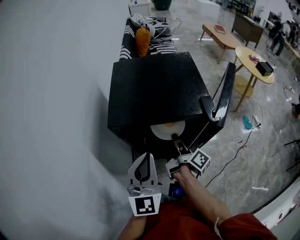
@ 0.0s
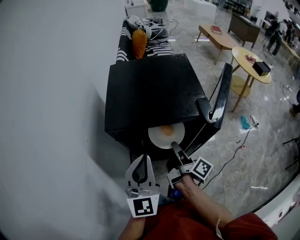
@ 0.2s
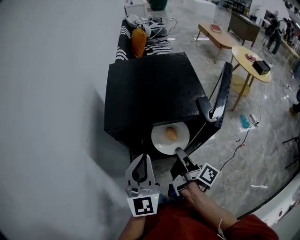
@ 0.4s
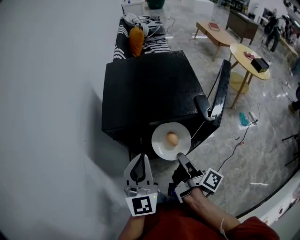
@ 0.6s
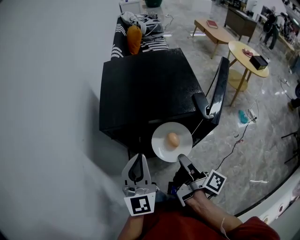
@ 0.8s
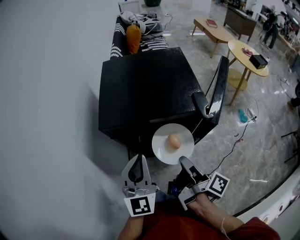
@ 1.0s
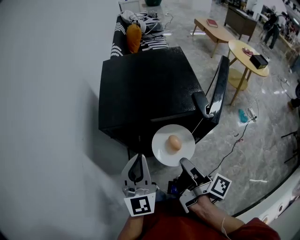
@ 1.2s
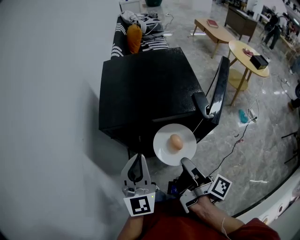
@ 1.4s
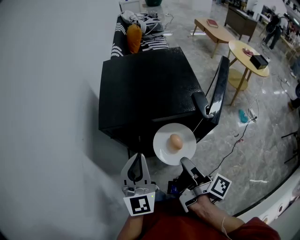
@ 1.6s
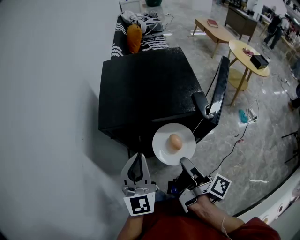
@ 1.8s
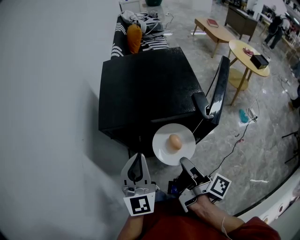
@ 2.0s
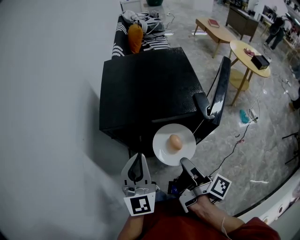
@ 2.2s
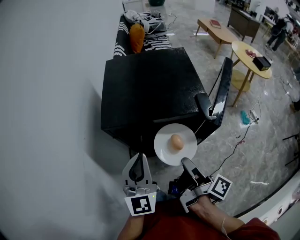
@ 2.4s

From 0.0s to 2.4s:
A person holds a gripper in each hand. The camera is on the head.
From 0.0s to 1.2s: The right gripper travels backward and upward by some 15 cm.
From 1.2s to 2.4s: Both grippers stay about where they are.

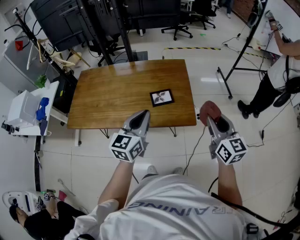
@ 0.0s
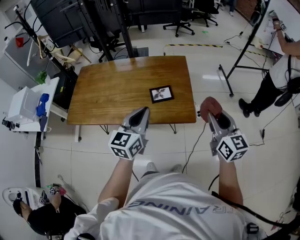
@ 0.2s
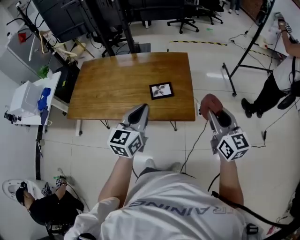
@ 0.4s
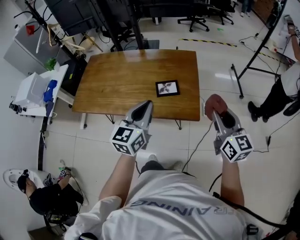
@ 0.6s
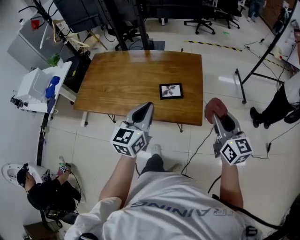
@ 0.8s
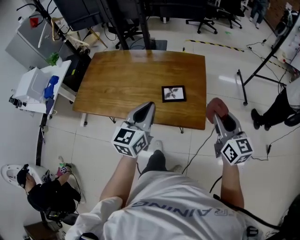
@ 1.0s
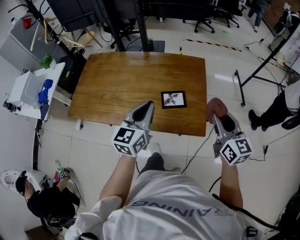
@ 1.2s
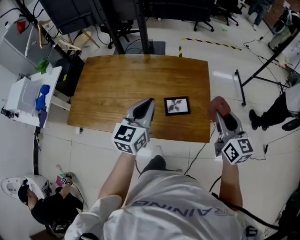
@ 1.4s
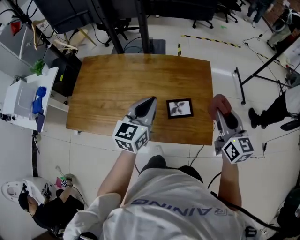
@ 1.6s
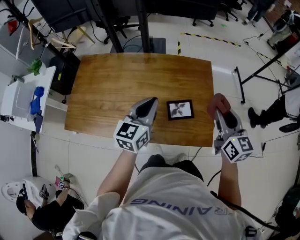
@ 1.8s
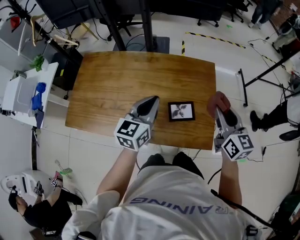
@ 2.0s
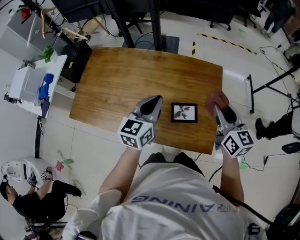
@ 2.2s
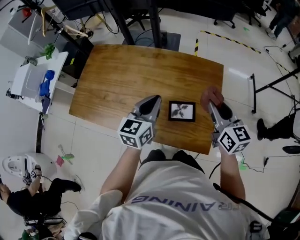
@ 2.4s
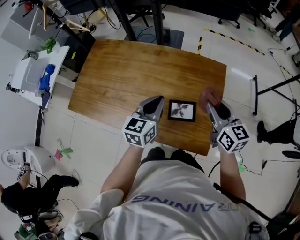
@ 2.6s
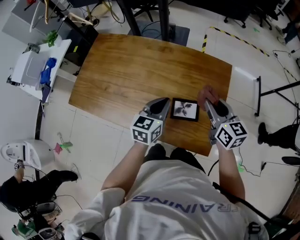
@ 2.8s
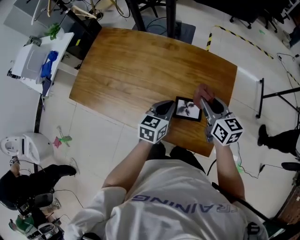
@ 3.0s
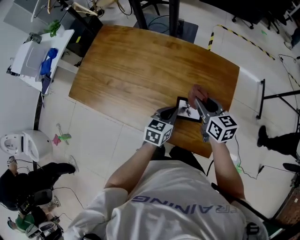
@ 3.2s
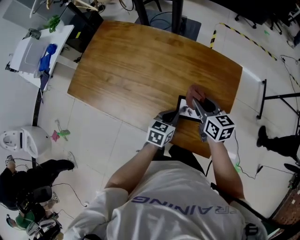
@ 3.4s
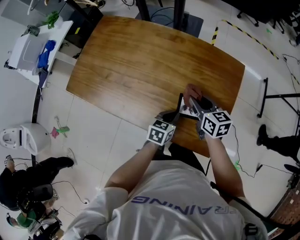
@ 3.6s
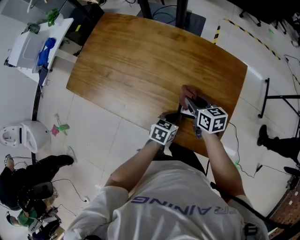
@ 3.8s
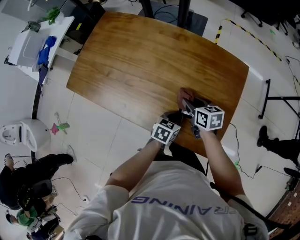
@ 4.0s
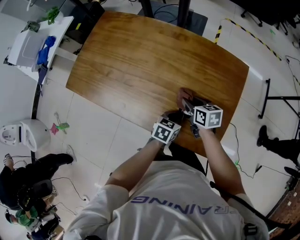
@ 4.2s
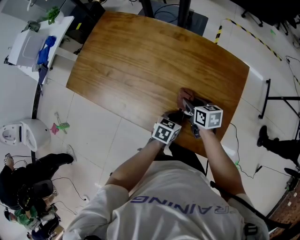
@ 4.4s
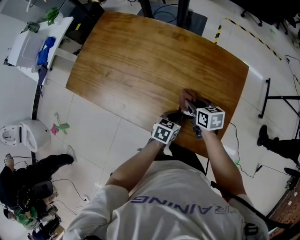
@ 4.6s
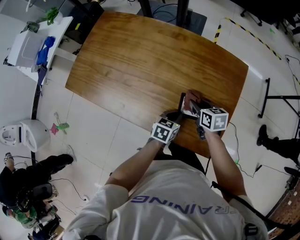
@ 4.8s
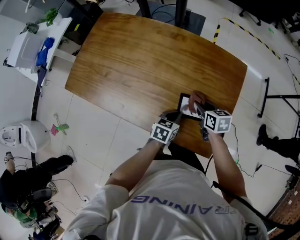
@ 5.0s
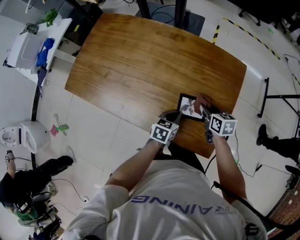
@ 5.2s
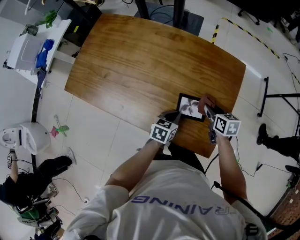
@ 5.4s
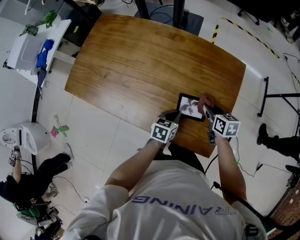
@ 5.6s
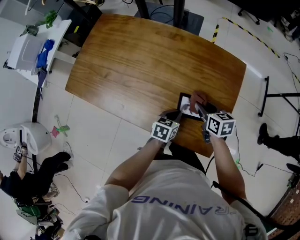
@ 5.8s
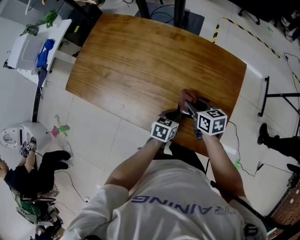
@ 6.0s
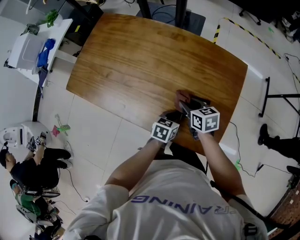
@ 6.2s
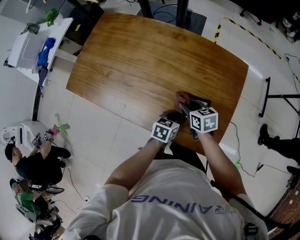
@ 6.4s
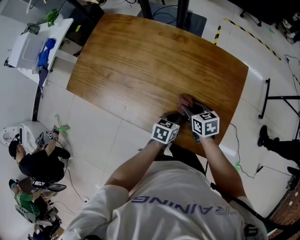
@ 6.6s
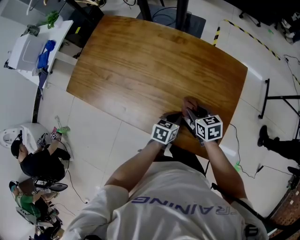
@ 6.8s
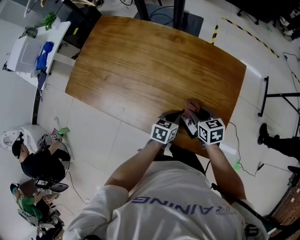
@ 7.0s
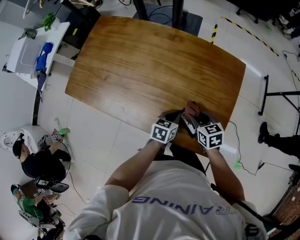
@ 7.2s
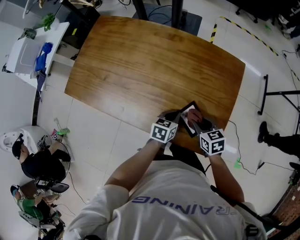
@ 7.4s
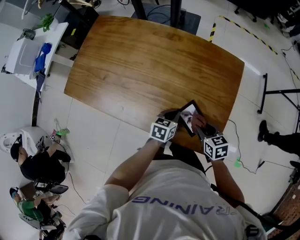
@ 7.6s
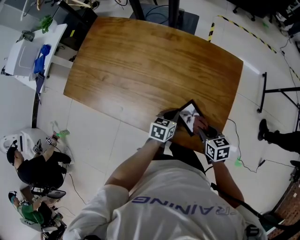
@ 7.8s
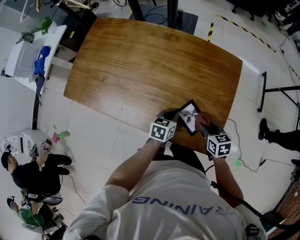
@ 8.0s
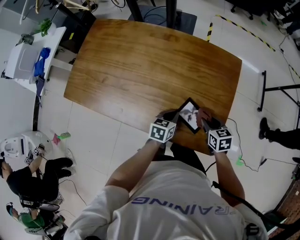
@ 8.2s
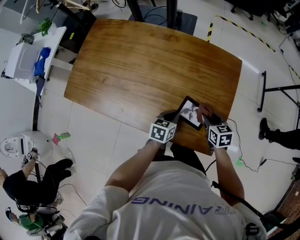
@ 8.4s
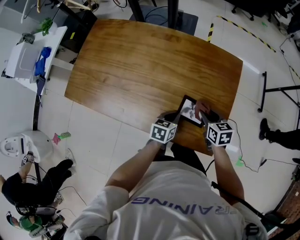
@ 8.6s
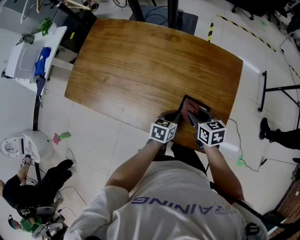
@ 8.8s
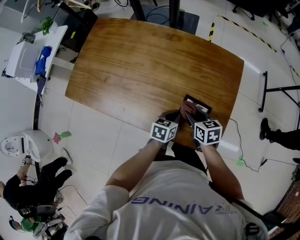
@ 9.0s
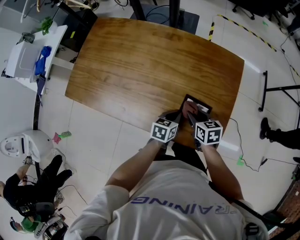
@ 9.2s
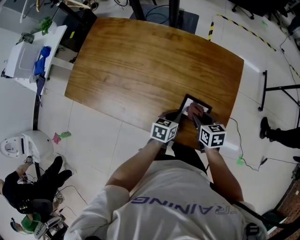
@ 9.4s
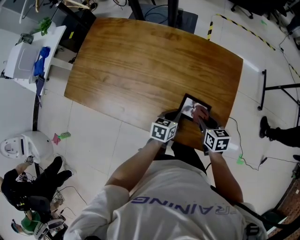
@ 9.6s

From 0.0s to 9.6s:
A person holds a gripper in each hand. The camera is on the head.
From 0.0s to 1.6s: The grippers both shift forward by roughly 20 cm.
From 1.6s to 3.2s: The right gripper is displaced downward, forward and to the left by some 20 cm, and swivels about 30 degrees, while the left gripper shifts roughly 20 cm downward, and changes its angle by approximately 30 degrees.
From 3.2s to 4.8s: The right gripper shifts some 15 cm downward, and rotates some 20 degrees; the left gripper shifts roughly 10 cm downward.
From 4.8s to 6.4s: The right gripper moves to the left, roughly 5 cm.
From 6.4s to 8.0s: The right gripper travels to the right and backward by roughly 15 cm.
From 8.0s to 9.6s: The right gripper reaches some 10 cm to the left, then returns.

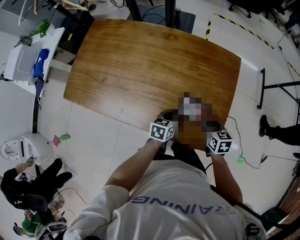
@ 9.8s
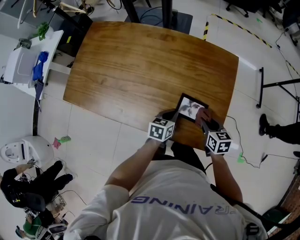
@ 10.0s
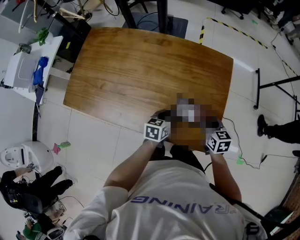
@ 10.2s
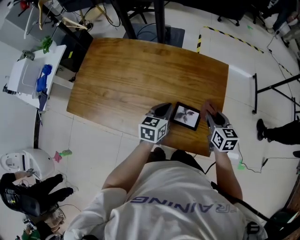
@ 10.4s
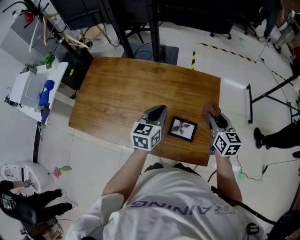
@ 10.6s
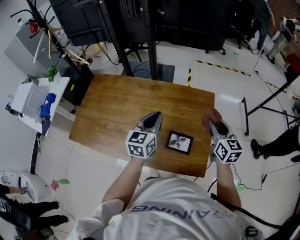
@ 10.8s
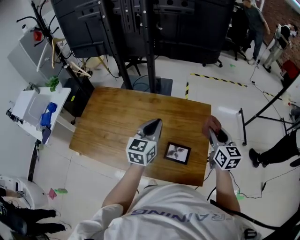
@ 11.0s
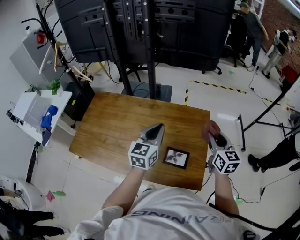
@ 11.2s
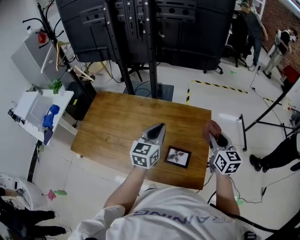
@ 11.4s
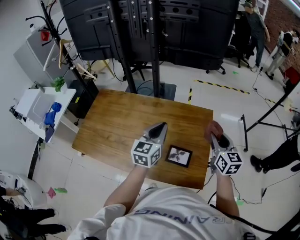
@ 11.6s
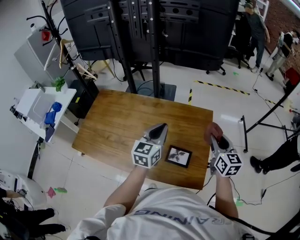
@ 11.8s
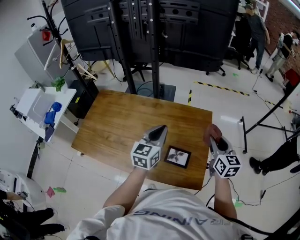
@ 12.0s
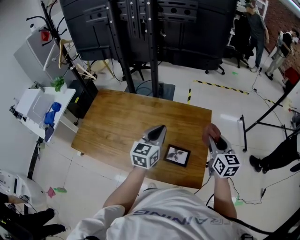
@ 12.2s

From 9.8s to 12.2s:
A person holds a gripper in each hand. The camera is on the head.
From 9.8s to 11.0s: The two grippers go some 25 cm upward. The right gripper tilts its fingers approximately 30 degrees upward; the left gripper angles its fingers upward, by roughly 30 degrees.
From 11.0s to 12.2s: There are only small adjustments of the grippers.

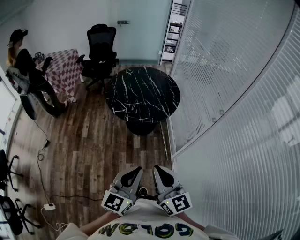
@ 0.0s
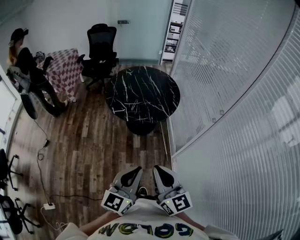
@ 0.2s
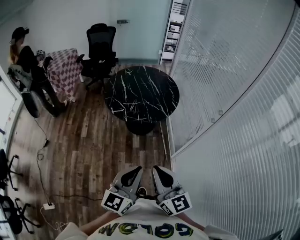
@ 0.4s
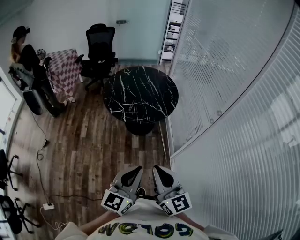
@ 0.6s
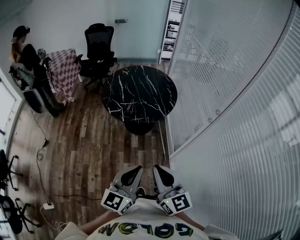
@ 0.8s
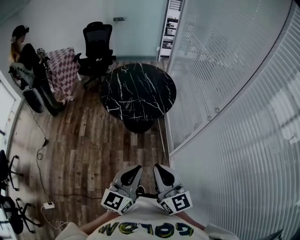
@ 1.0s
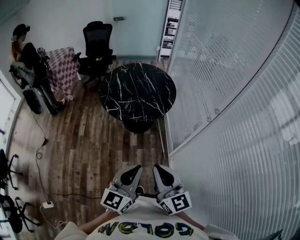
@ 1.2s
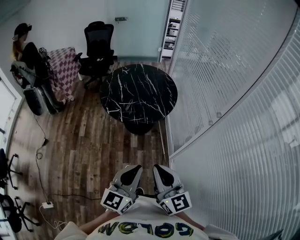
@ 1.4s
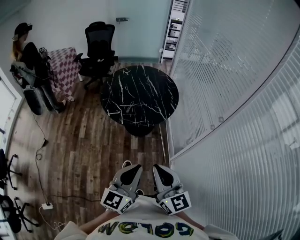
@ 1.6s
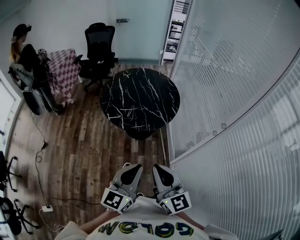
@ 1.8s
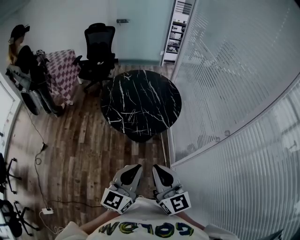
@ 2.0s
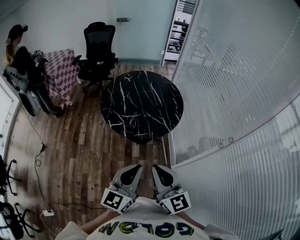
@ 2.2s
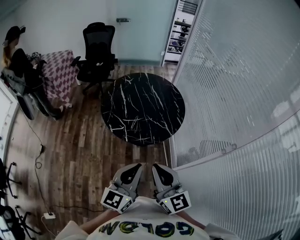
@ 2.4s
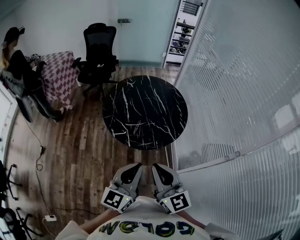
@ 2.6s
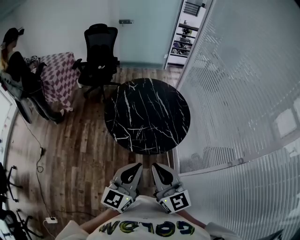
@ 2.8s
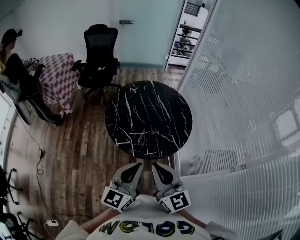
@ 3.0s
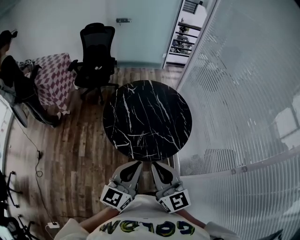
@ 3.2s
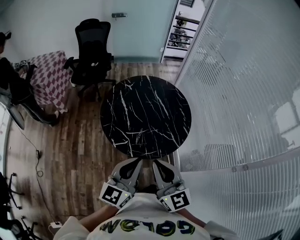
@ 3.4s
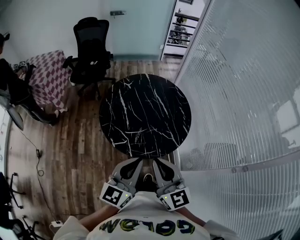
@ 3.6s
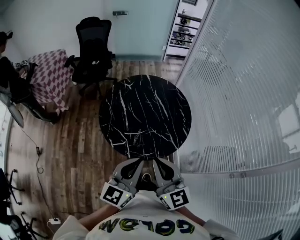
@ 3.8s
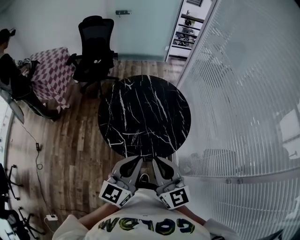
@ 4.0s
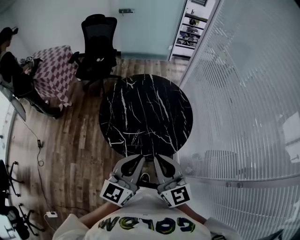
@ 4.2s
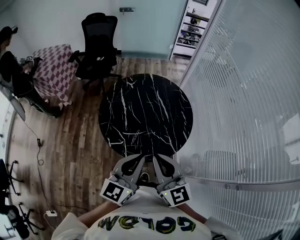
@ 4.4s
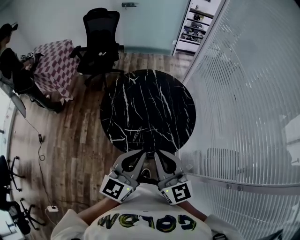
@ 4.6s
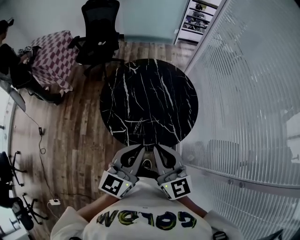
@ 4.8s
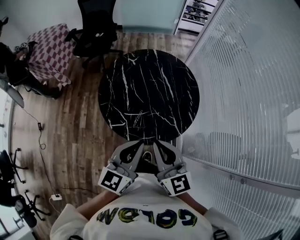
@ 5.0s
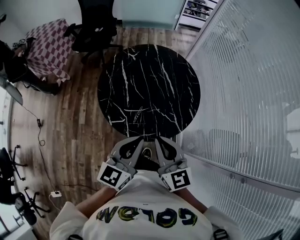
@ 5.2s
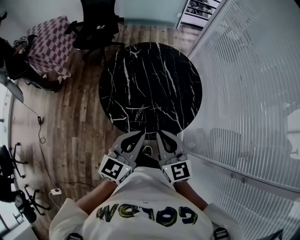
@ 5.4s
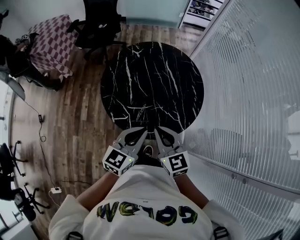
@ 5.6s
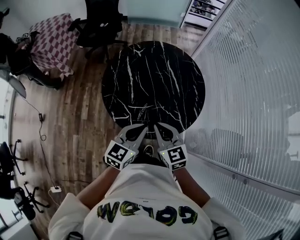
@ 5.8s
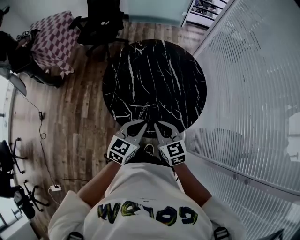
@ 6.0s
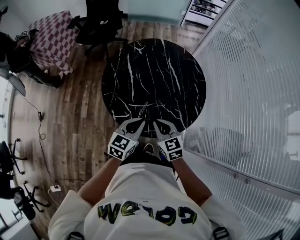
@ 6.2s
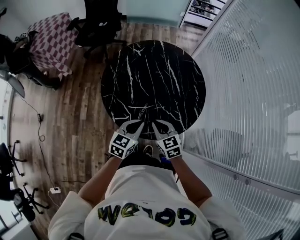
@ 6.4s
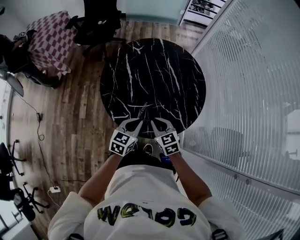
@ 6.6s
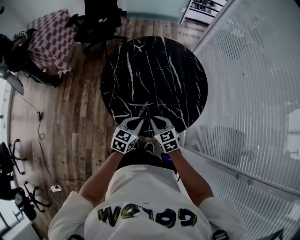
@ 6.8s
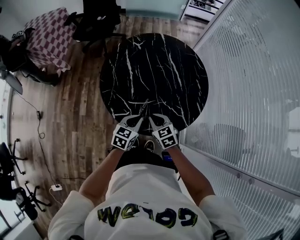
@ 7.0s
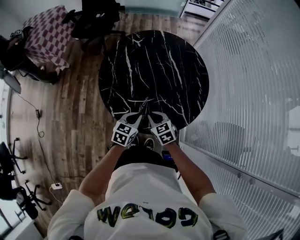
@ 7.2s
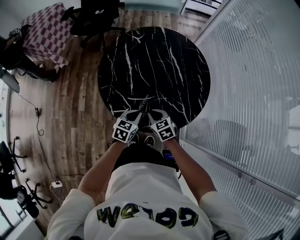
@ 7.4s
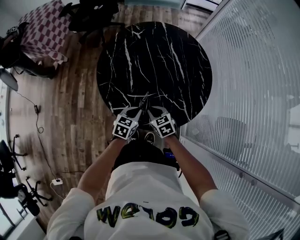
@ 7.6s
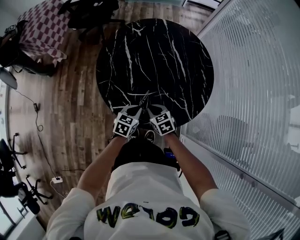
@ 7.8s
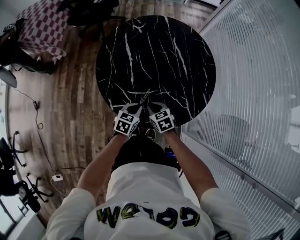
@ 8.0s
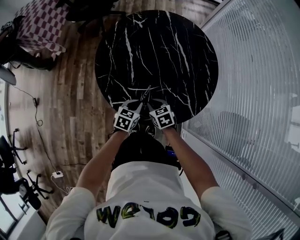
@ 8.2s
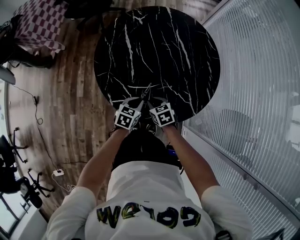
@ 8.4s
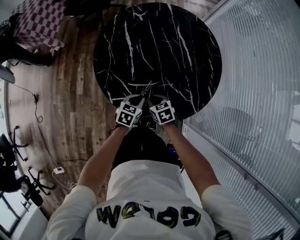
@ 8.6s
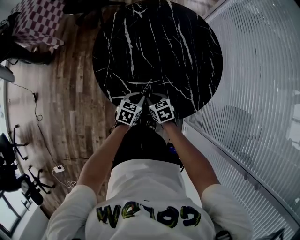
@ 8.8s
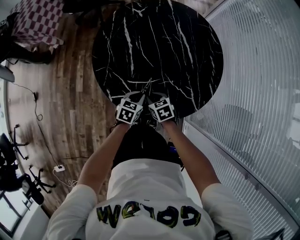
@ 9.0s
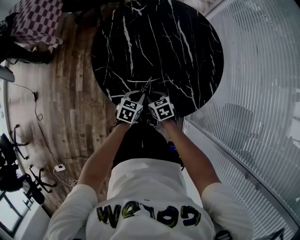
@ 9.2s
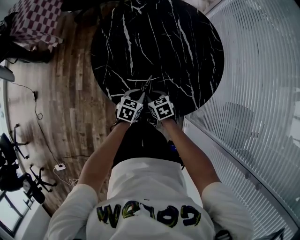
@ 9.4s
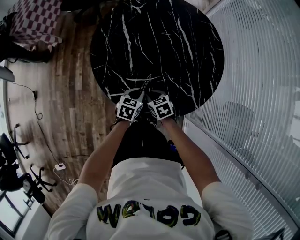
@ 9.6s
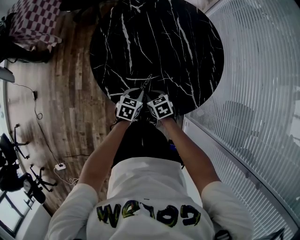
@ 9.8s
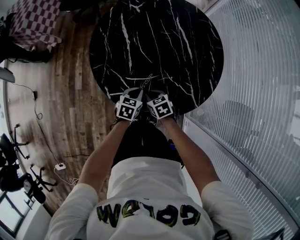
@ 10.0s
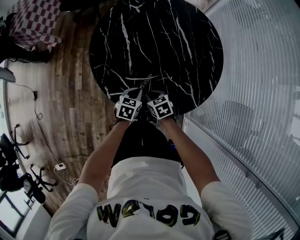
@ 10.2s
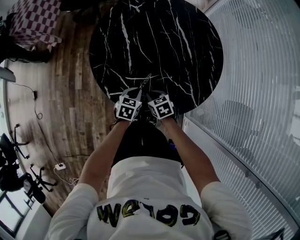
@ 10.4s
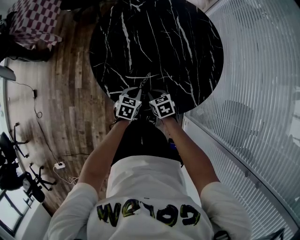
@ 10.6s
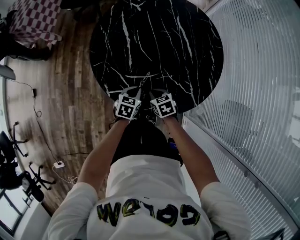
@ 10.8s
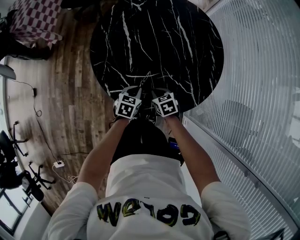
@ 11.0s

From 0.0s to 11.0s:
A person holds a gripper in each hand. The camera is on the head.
From 0.0s to 1.6s: The two grippers go some 5 cm forward.
From 1.6s to 3.2s: Both grippers travel together forward and to the left, roughly 35 cm.
From 3.2s to 4.8s: Both grippers travel together forward and to the right, about 10 cm.
From 4.8s to 6.2s: Both grippers move downward, approximately 20 cm. The right gripper rotates about 30 degrees. Meanwhile the left gripper turns by about 20 degrees.
From 6.2s to 7.8s: The grippers both shift downward by roughly 20 cm. The right gripper rotates some 20 degrees.
From 7.8s to 9.4s: The grippers both shift downward by approximately 5 cm.
From 9.4s to 11.0s: The grippers move only a little.
